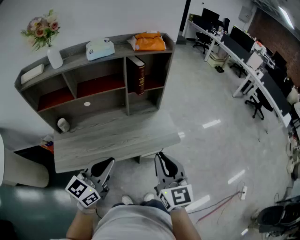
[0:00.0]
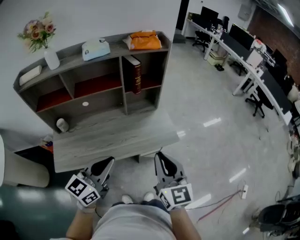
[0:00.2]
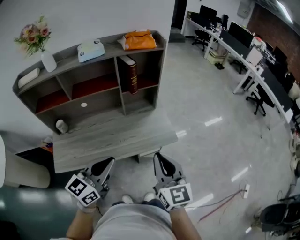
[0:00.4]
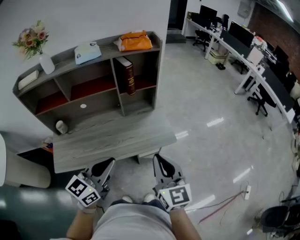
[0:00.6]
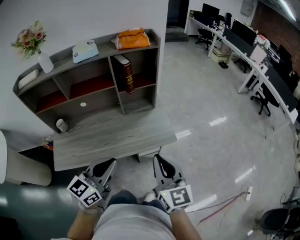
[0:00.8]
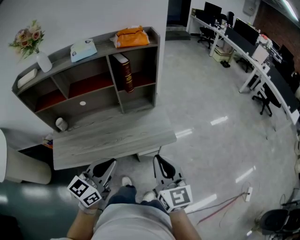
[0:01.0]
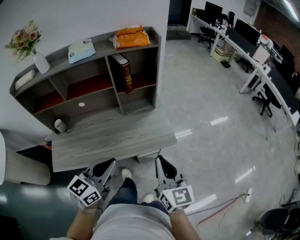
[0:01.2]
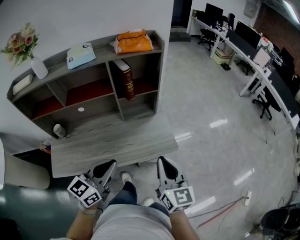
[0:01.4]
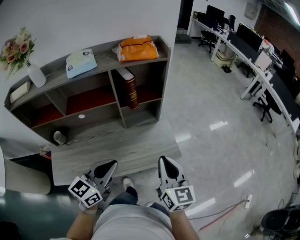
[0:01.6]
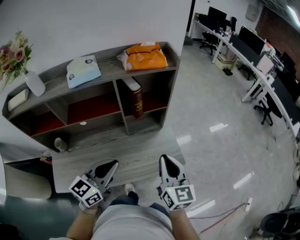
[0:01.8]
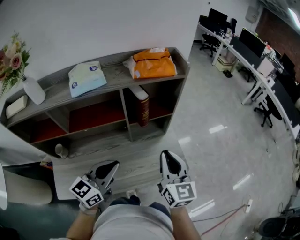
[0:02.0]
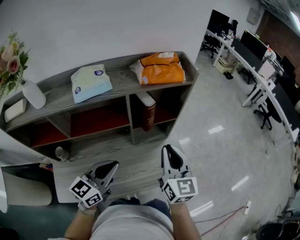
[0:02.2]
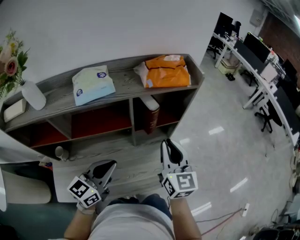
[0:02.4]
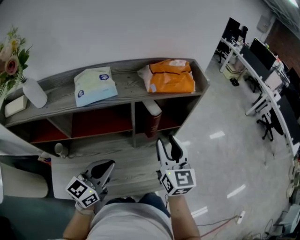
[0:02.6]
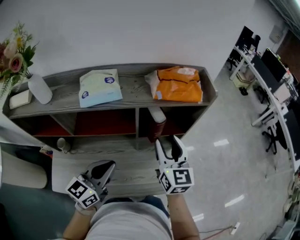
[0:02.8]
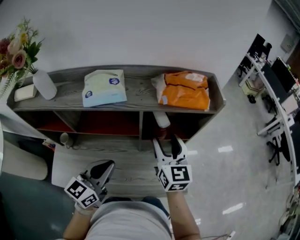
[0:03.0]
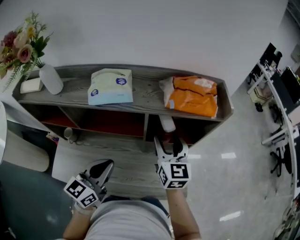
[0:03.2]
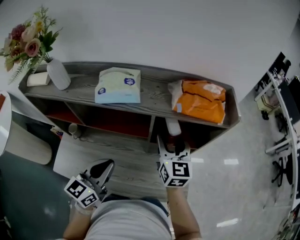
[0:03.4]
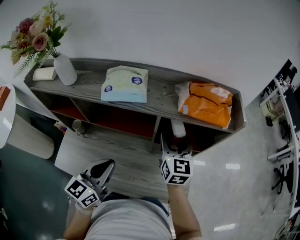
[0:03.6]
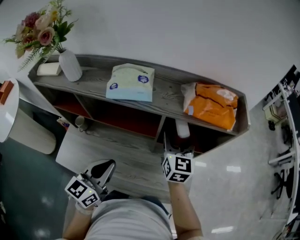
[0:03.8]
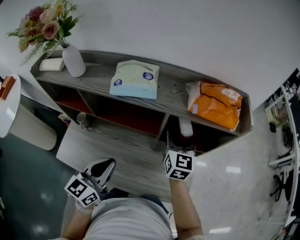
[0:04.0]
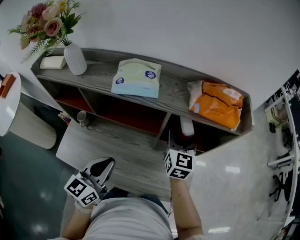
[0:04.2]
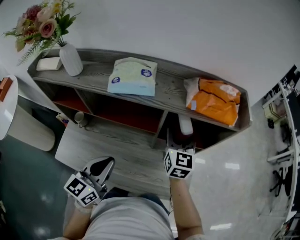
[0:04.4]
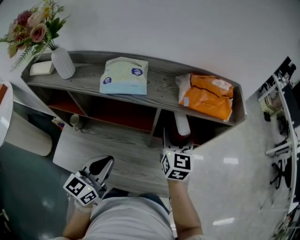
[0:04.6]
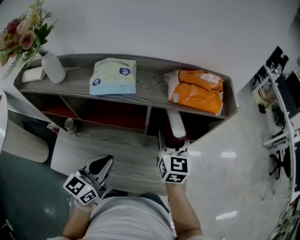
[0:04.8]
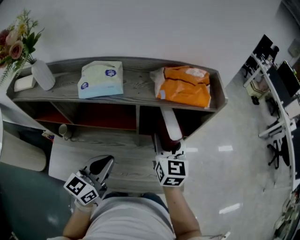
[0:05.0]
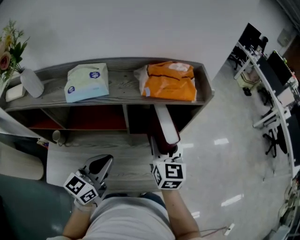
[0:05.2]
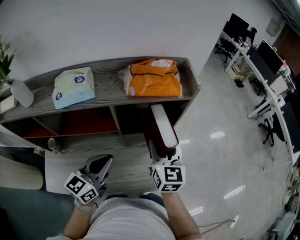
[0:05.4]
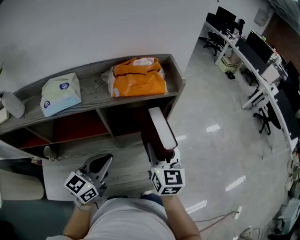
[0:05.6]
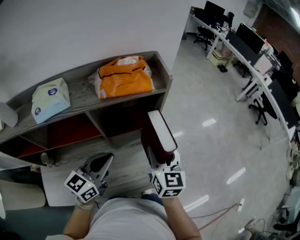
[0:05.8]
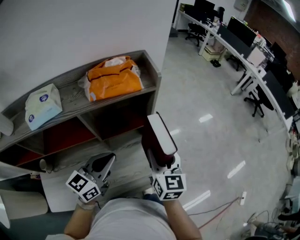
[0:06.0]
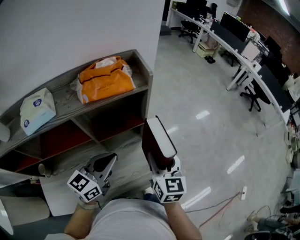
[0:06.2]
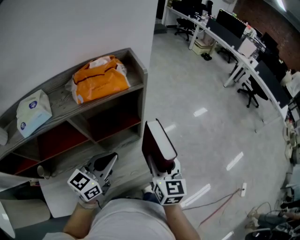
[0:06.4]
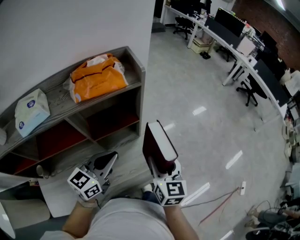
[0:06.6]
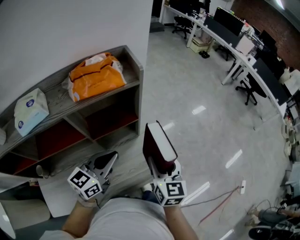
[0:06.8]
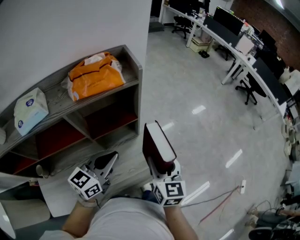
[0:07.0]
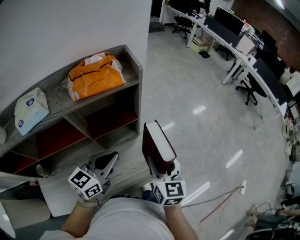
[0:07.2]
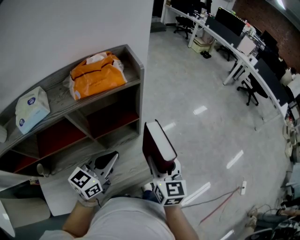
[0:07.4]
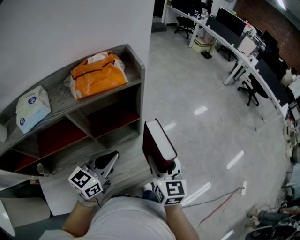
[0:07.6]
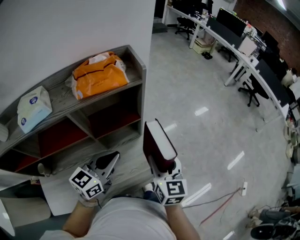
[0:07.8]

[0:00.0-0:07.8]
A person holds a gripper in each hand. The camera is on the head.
0.0 to 1.6 s: The left gripper shifts about 10 cm forward; the right gripper goes roughly 15 cm forward and downward.
1.6 to 3.2 s: The left gripper is displaced forward and to the left by roughly 20 cm, and rotates roughly 20 degrees; the right gripper shifts approximately 35 cm forward and to the left, and opens its fingers.
3.2 to 4.6 s: The grippers stay close to where they were, moving slightly.
4.6 to 6.2 s: The right gripper changes place by approximately 25 cm, and changes its angle by about 30 degrees. The left gripper changes place by some 20 cm, and changes its angle by about 40 degrees.
6.2 to 7.8 s: The grippers stay close to where they were, moving slightly.

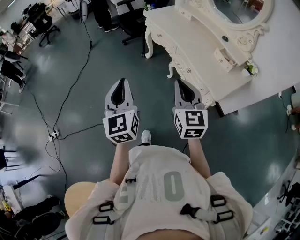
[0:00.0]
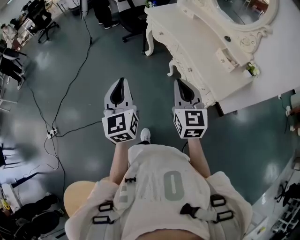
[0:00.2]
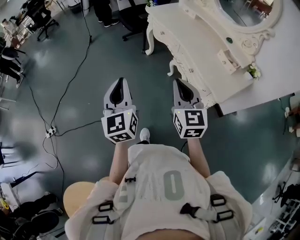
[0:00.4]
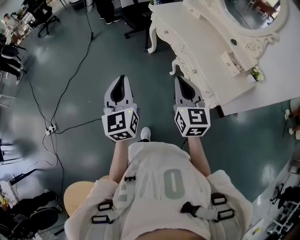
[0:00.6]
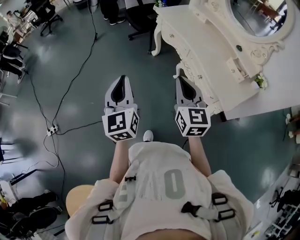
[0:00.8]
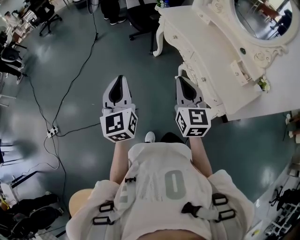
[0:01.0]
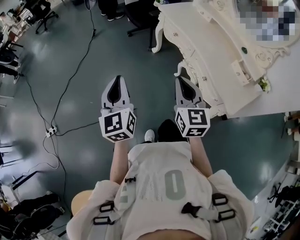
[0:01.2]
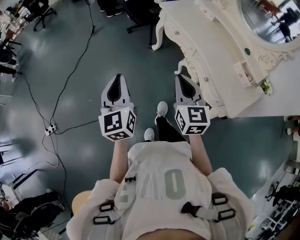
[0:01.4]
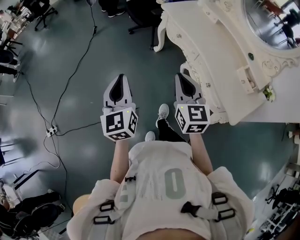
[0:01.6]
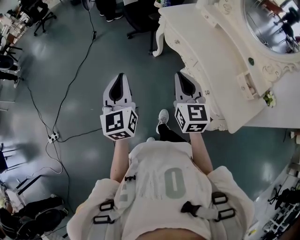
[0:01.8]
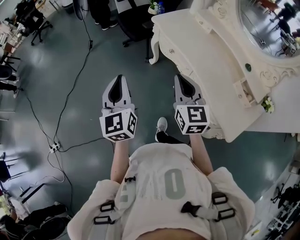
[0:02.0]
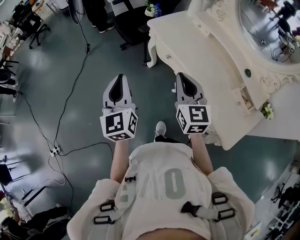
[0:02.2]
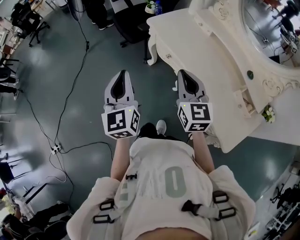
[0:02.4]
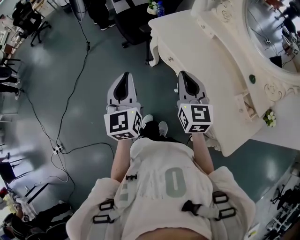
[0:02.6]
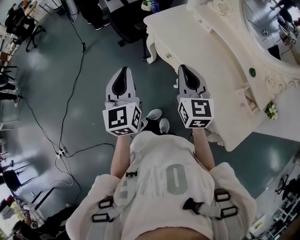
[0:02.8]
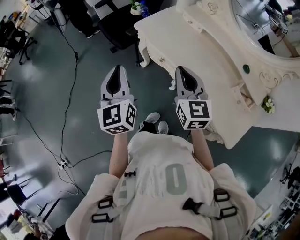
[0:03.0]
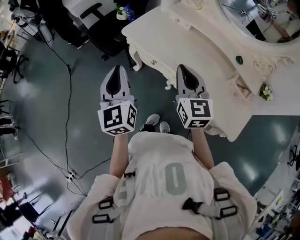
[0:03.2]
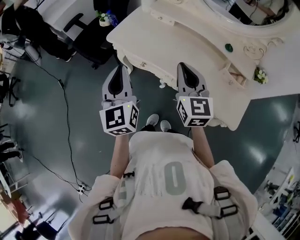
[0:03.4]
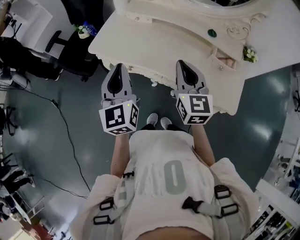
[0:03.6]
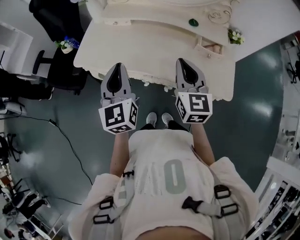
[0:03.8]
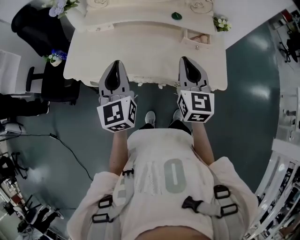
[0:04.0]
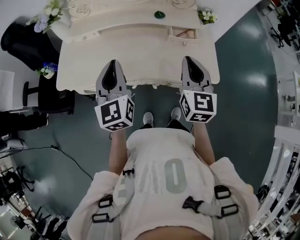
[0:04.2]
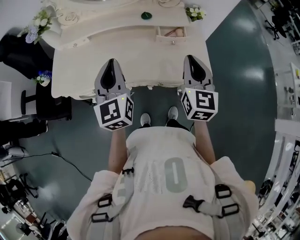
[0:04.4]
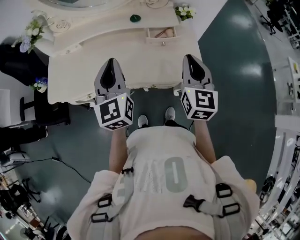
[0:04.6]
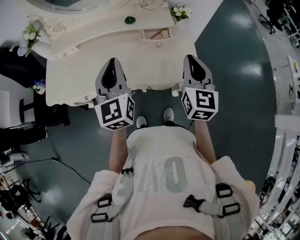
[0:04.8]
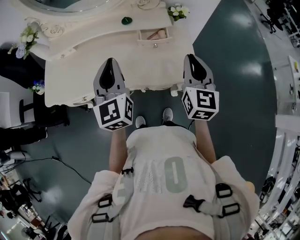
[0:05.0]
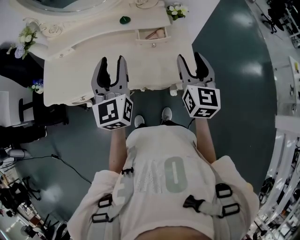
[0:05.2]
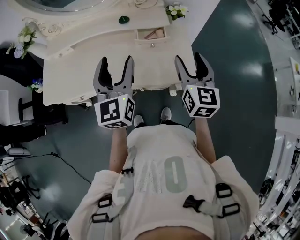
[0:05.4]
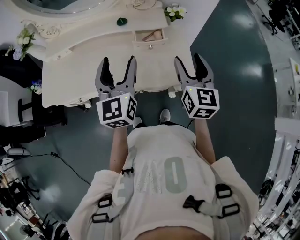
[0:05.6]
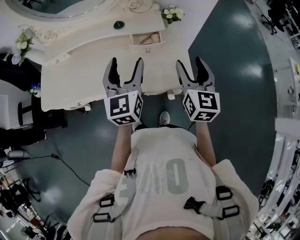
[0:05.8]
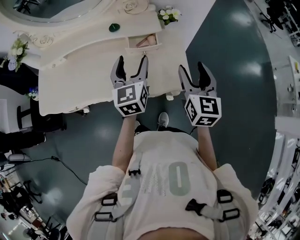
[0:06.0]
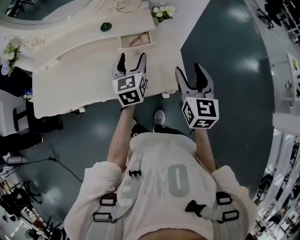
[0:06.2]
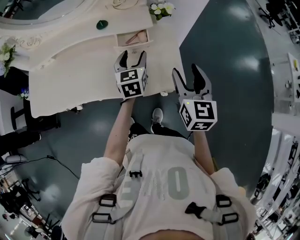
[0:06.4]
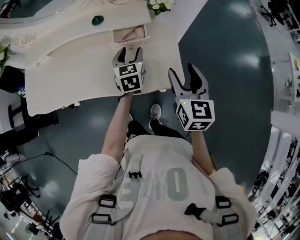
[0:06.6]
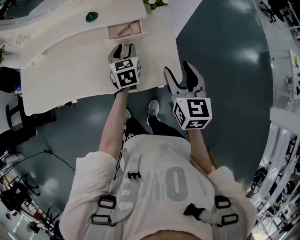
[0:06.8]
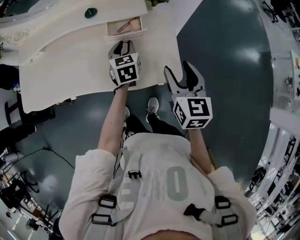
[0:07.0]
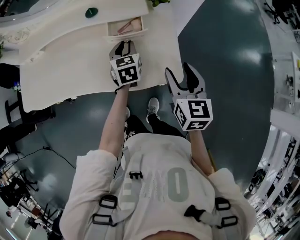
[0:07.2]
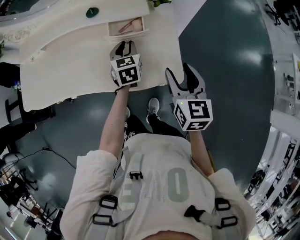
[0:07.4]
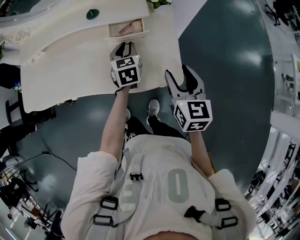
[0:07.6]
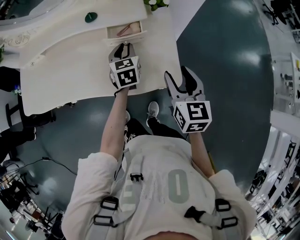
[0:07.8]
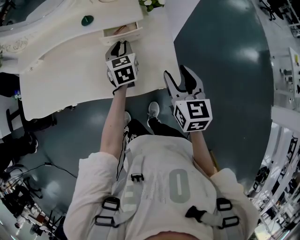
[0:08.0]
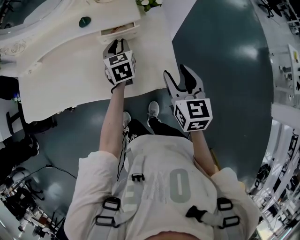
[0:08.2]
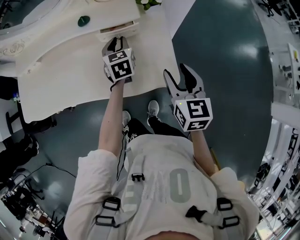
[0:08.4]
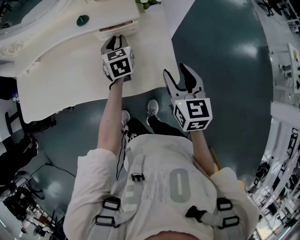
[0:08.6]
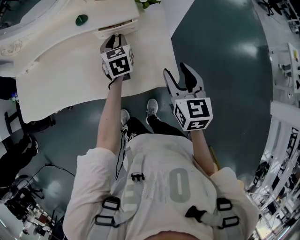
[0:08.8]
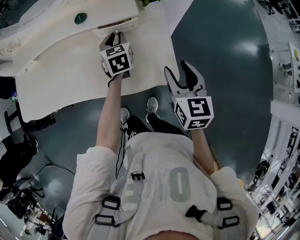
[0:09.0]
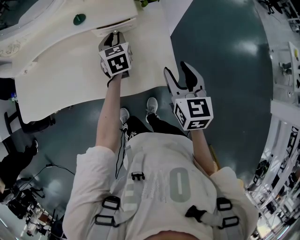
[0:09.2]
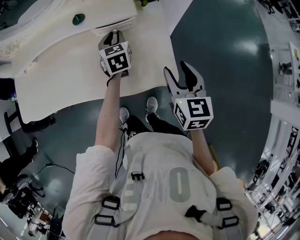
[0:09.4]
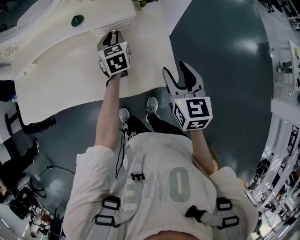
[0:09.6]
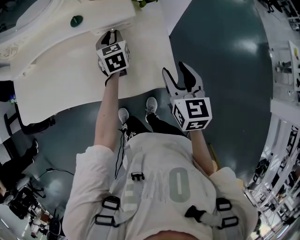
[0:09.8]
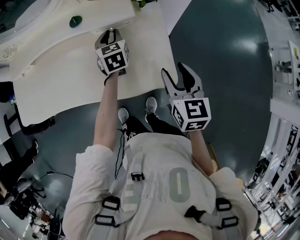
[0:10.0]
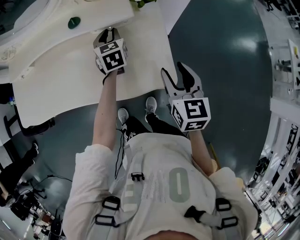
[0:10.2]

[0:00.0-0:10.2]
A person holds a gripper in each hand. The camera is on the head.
0.0 to 1.4 s: The two grippers go about 20 cm forward and to the left.
1.4 to 3.0 s: The two grippers go roughly 35 cm forward and to the right.
3.0 to 4.4 s: The right gripper shifts by about 35 cm, and changes its angle by about 60 degrees; the left gripper changes place by approximately 35 cm, and turns by approximately 50 degrees.
4.4 to 5.8 s: The two grippers go some 15 cm to the right. The left gripper opens. Meanwhile the right gripper opens its fingers.
5.8 to 7.2 s: The left gripper moves downward and forward, some 25 cm, turns by roughly 30 degrees, and closes its fingers. The right gripper moves downward, about 10 cm.
7.2 to 8.8 s: The grippers stay close to where they were, moving slightly.
8.8 to 10.2 s: The grippers stay close to where they were, moving slightly.

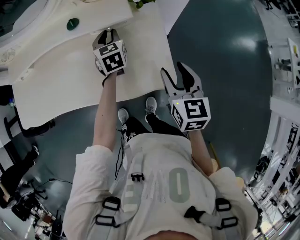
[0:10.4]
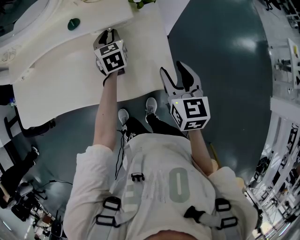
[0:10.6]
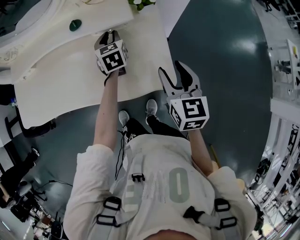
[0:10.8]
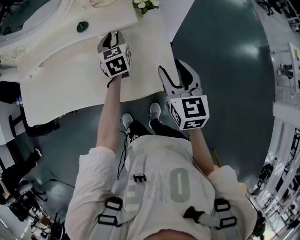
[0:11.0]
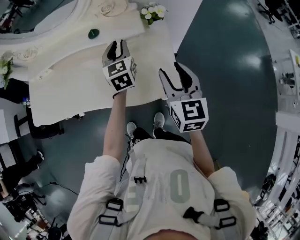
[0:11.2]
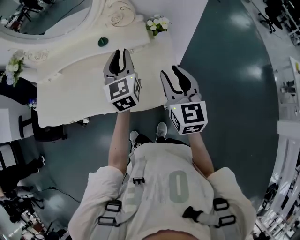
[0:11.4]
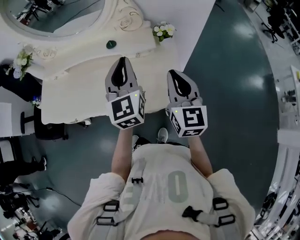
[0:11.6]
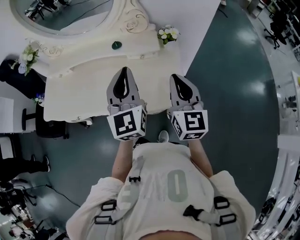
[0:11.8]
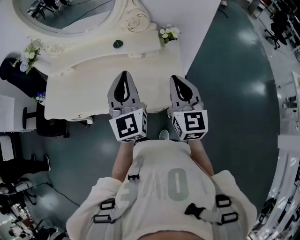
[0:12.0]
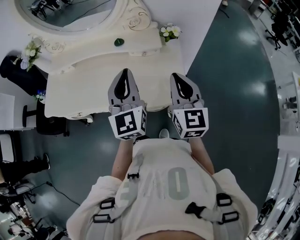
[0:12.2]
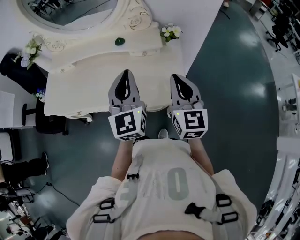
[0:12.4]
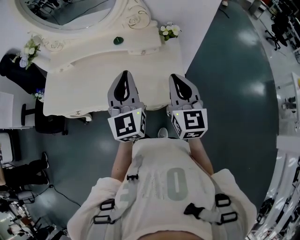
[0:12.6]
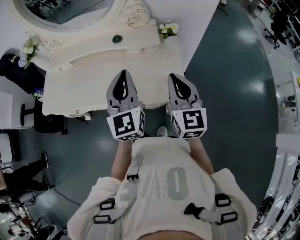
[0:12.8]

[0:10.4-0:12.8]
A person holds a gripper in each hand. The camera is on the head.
10.4 to 11.6 s: The left gripper moves upward and backward, about 30 cm, and tips its fingers upward by about 30 degrees. The right gripper shifts about 15 cm upward, changes its angle by roughly 20 degrees, and closes.
11.6 to 12.8 s: The left gripper is displaced backward by approximately 5 cm.

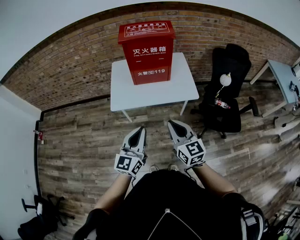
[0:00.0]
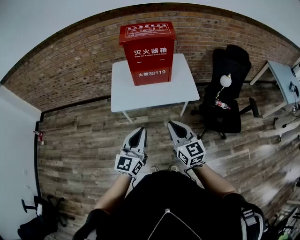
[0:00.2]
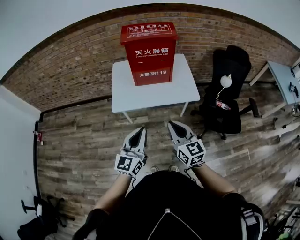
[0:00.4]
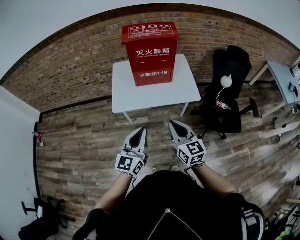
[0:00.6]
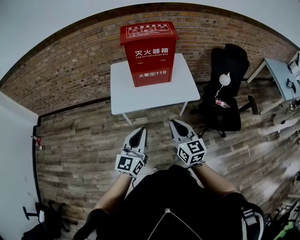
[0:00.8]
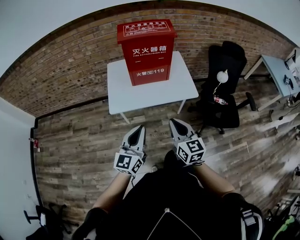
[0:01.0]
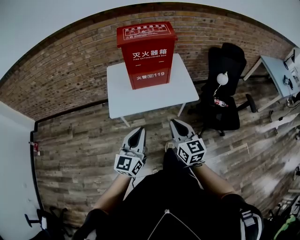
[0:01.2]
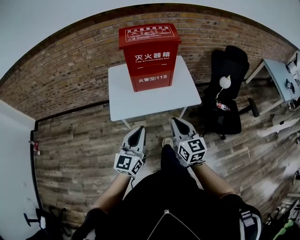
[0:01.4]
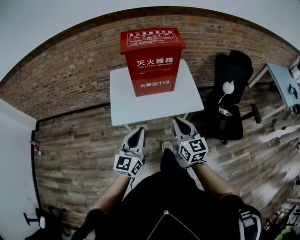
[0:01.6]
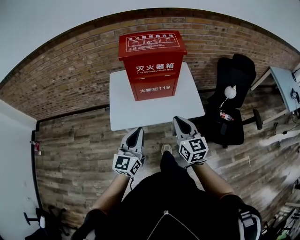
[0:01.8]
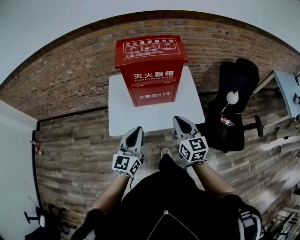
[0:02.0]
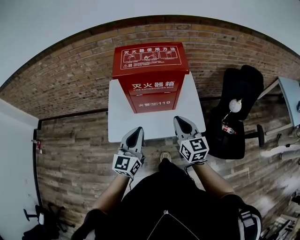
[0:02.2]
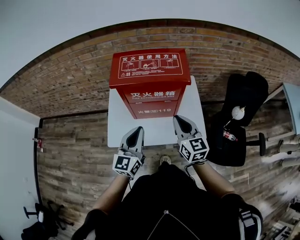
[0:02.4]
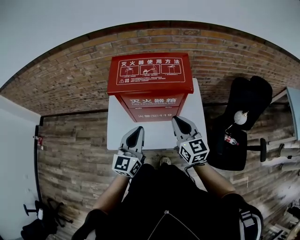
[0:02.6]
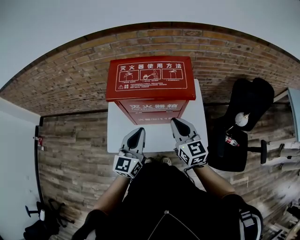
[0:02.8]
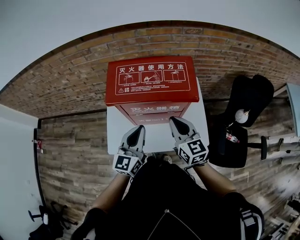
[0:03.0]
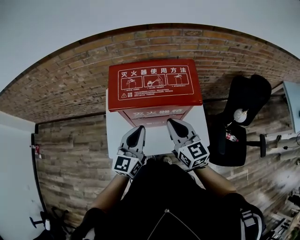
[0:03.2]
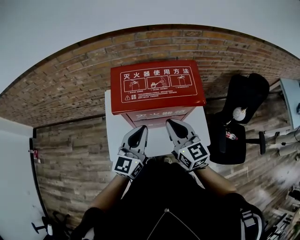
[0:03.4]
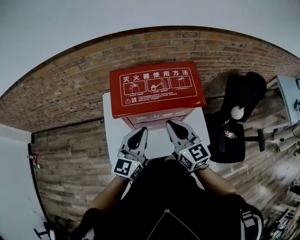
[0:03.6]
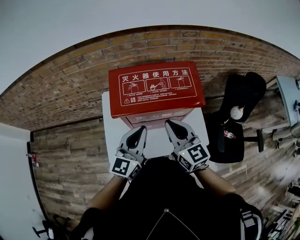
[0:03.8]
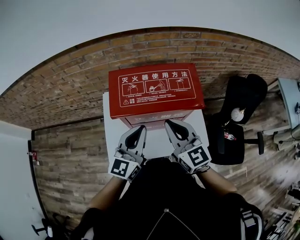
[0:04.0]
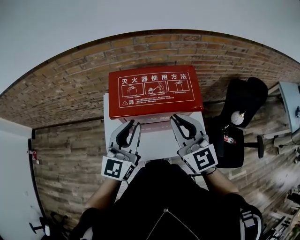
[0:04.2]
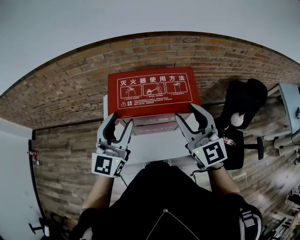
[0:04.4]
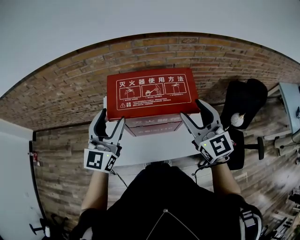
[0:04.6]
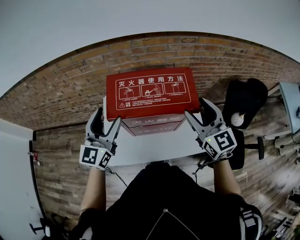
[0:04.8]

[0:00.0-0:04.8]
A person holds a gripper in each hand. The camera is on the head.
0.0 to 1.6 s: The right gripper is displaced forward by about 15 cm. The left gripper heads forward and to the left, covering about 15 cm.
1.6 to 3.2 s: Both grippers move forward, about 35 cm.
3.2 to 4.8 s: The left gripper goes approximately 15 cm upward, to the left and forward, and opens up; the right gripper travels upward, to the right and forward by approximately 15 cm, and opens its fingers.
